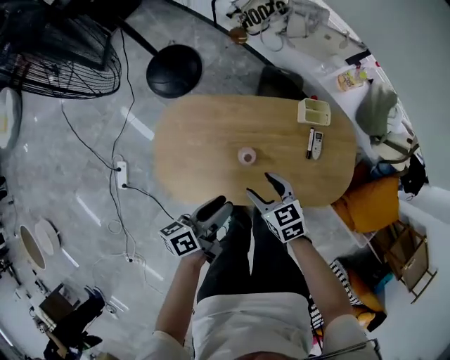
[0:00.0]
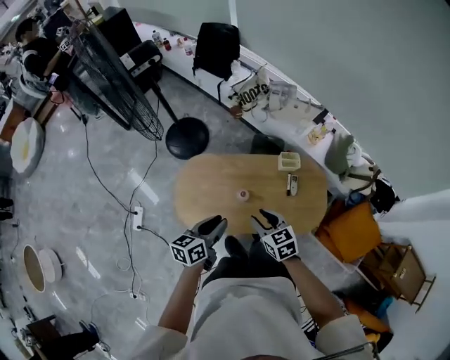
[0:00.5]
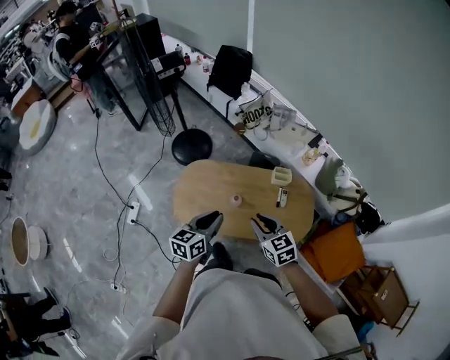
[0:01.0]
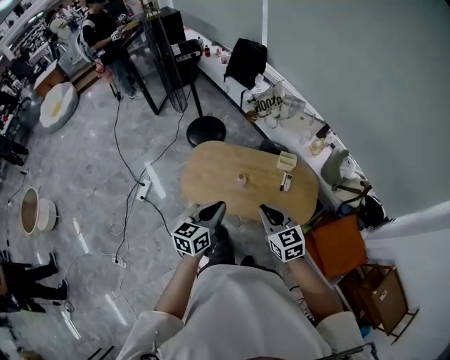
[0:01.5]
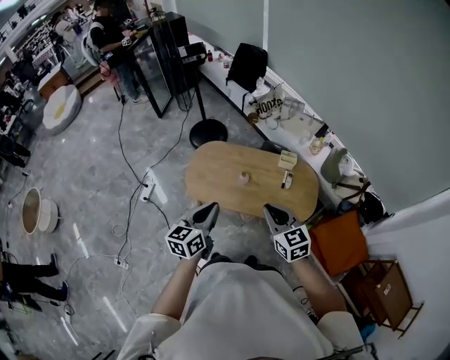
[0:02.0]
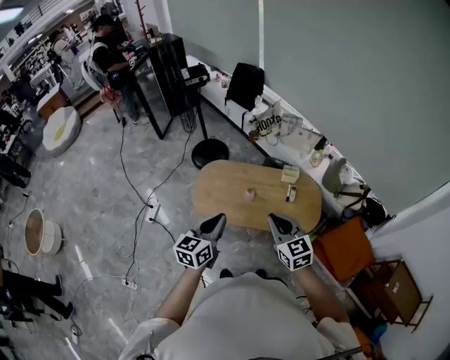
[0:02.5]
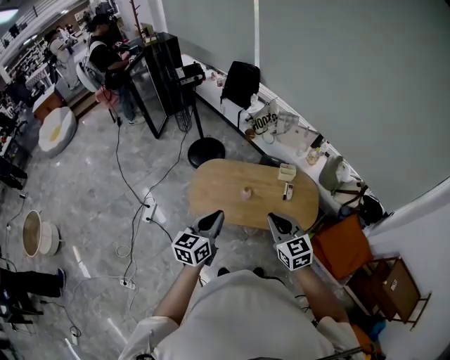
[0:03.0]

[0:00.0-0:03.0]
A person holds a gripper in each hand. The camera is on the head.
0:00.0 to 0:01.5: The right gripper moves upward, approximately 40 cm, swivels some 30 degrees, and closes.
0:01.5 to 0:03.0: The right gripper moves about 10 cm.

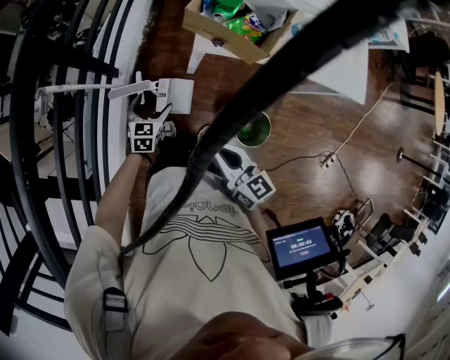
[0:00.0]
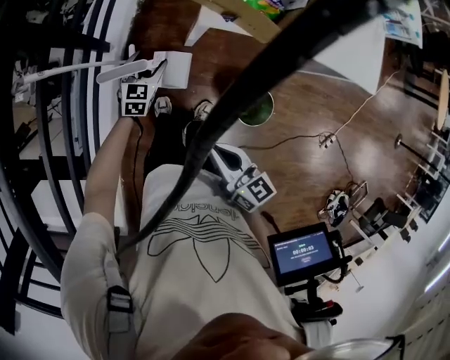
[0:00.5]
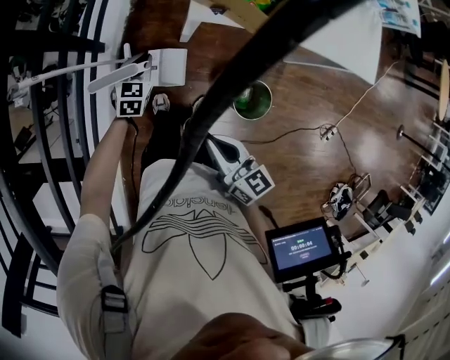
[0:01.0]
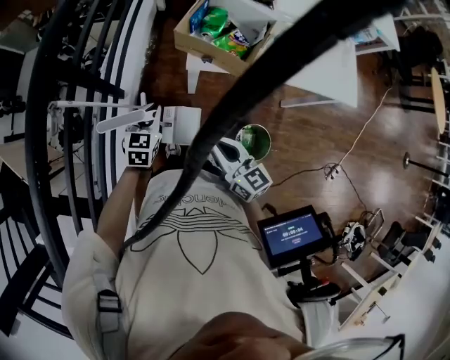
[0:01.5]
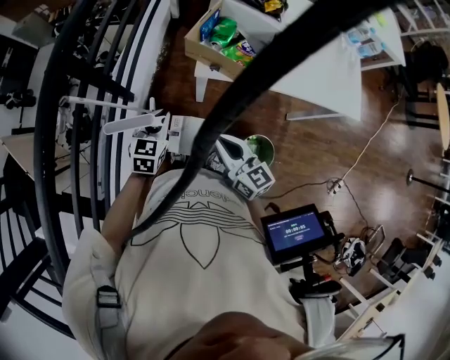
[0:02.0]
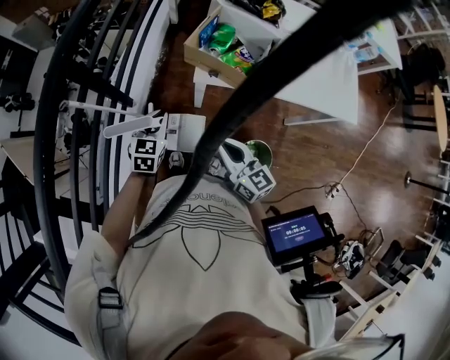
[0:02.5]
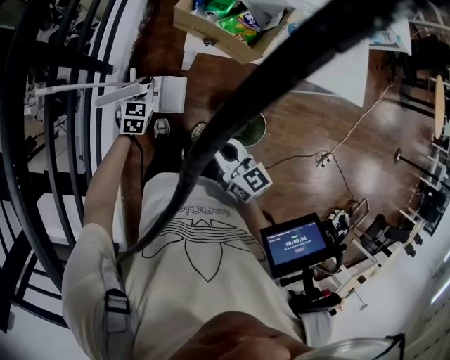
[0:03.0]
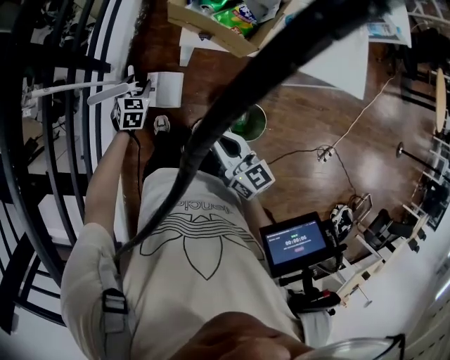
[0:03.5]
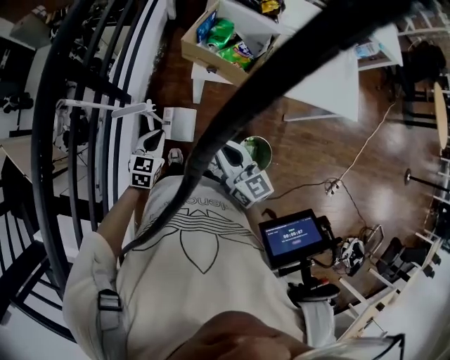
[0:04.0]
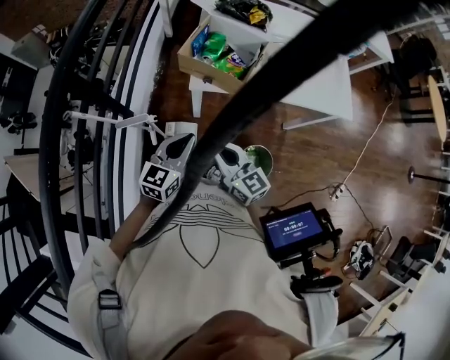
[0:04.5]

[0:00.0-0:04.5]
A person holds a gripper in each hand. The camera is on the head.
0:00.0 to 0:02.0: The right gripper heads forward, covering approximately 5 cm. The left gripper travels upward by roughly 15 cm, and closes up.
0:02.0 to 0:04.5: The left gripper goes some 10 cm to the right and backward, travels downward and back again, roughly 15 cm each way, rotates roughly 20 degrees, and opens, then closes again.

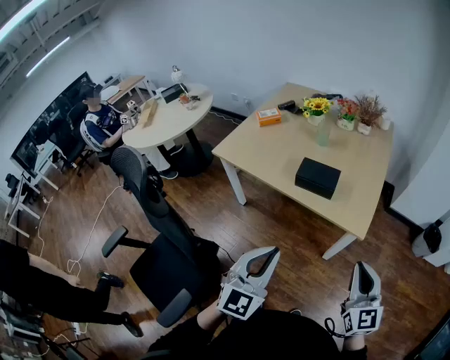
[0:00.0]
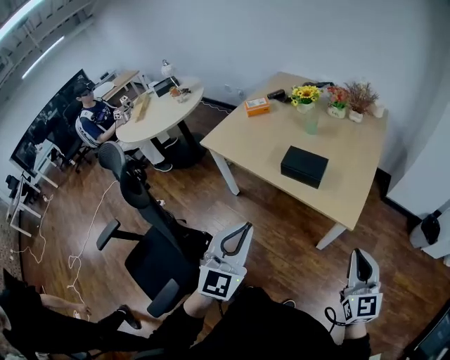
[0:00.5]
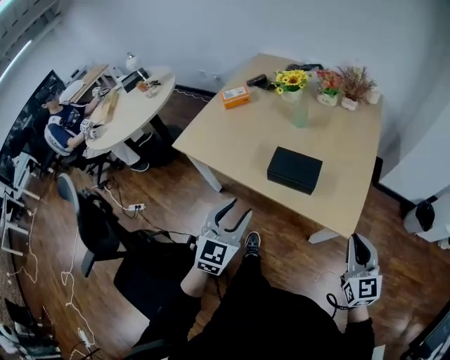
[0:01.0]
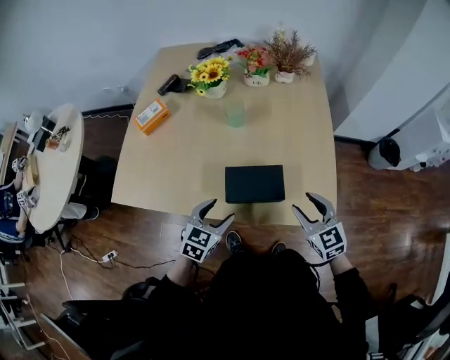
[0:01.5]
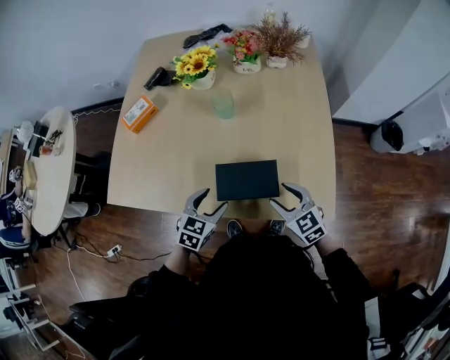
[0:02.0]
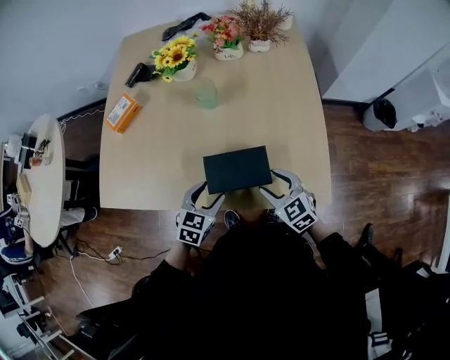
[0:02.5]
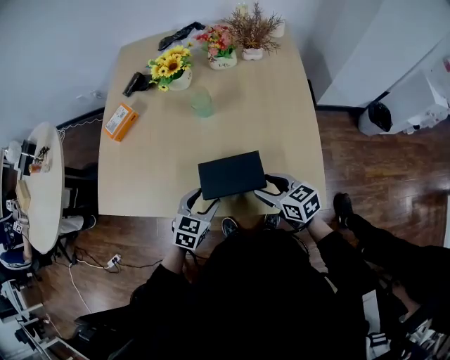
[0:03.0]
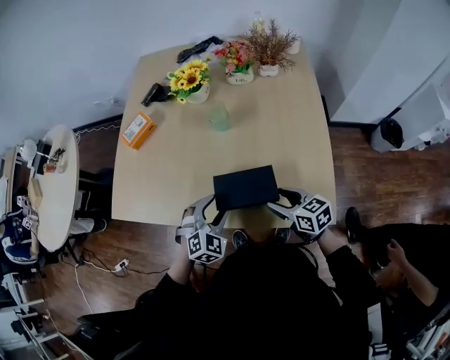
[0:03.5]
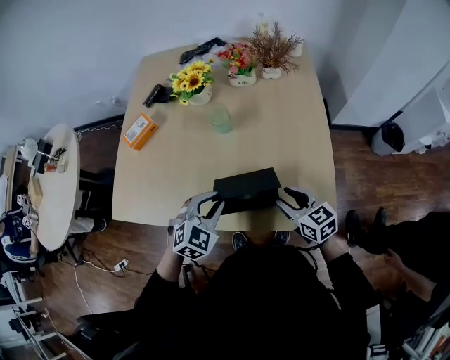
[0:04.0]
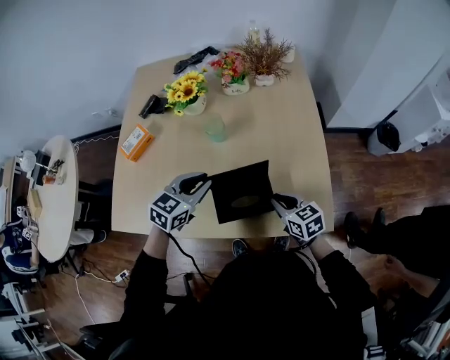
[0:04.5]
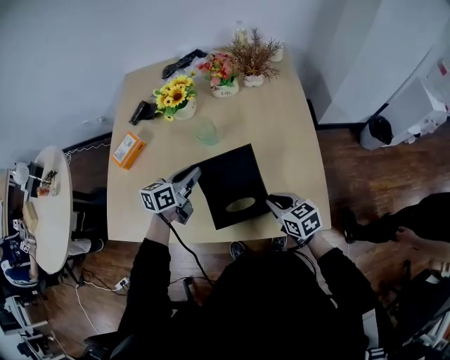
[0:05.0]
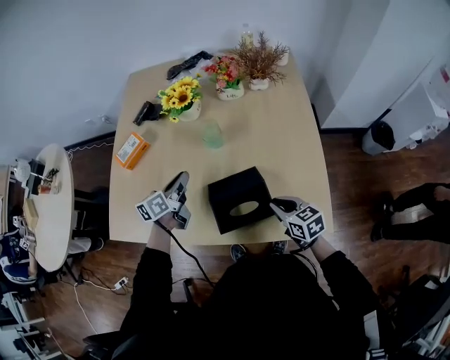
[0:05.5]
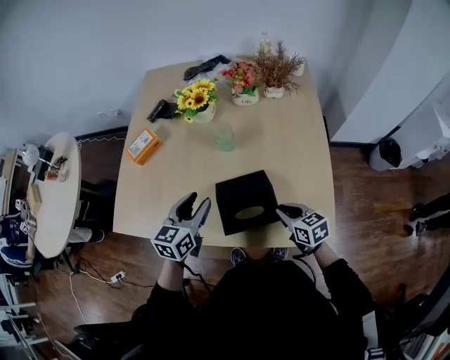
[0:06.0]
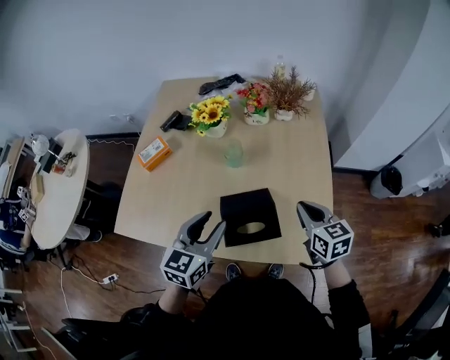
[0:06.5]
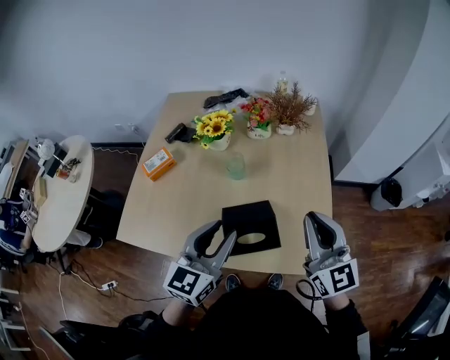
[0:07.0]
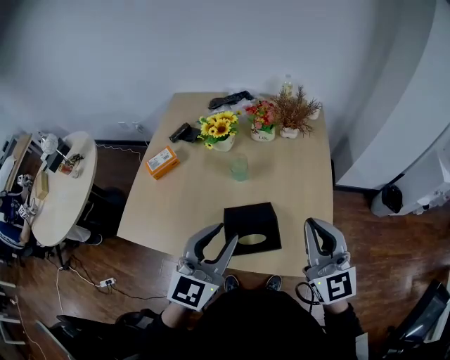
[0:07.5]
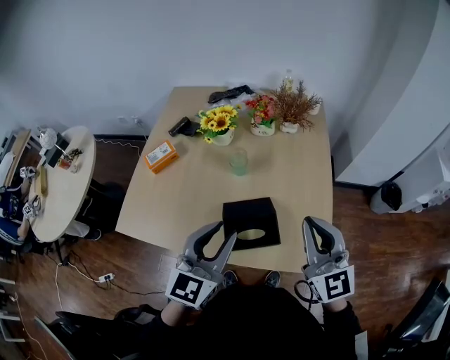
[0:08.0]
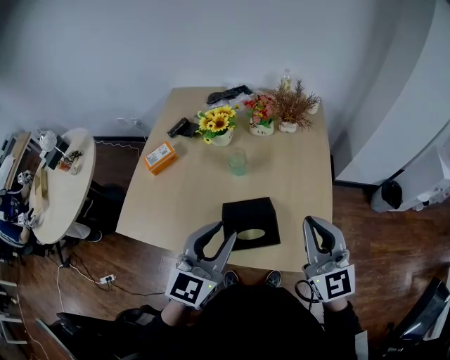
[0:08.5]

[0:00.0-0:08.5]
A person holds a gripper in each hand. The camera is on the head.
0:00.0 to 0:02.0: Both grippers travel together forward and downward, about 50 cm. The left gripper tips its fingers downward by approximately 40 degrees, and opens up. Meanwhile the right gripper swivels roughly 30 degrees, and opens its fingers.
0:02.0 to 0:04.0: The right gripper swivels some 20 degrees. The left gripper heads upward, covering approximately 10 cm, turns by roughly 30 degrees, and closes.
0:04.0 to 0:06.5: The right gripper travels upward and forward by about 10 cm, and closes. Meanwhile the left gripper travels upward by roughly 10 cm, travels forward and back again, approximately 15 cm each way, swivels roughly 40 degrees, and opens up.
0:06.5 to 0:08.5: The left gripper heads upward, covering some 10 cm; the right gripper is displaced upward by some 15 cm, and changes its angle by some 40 degrees.

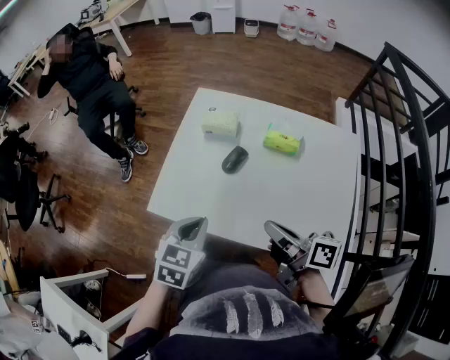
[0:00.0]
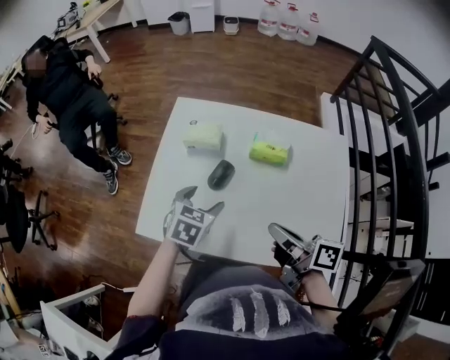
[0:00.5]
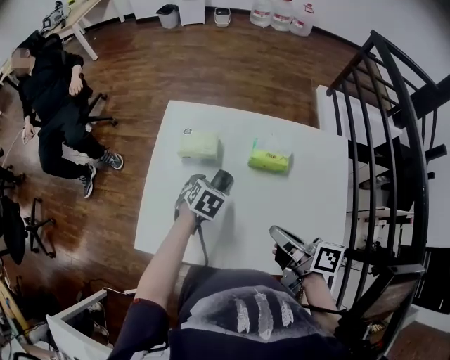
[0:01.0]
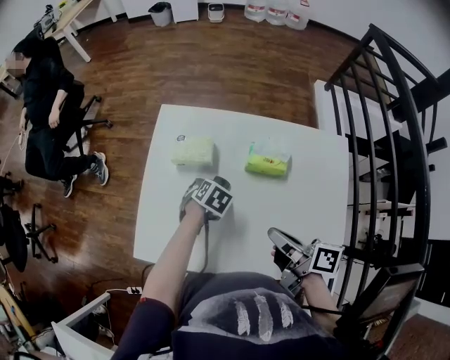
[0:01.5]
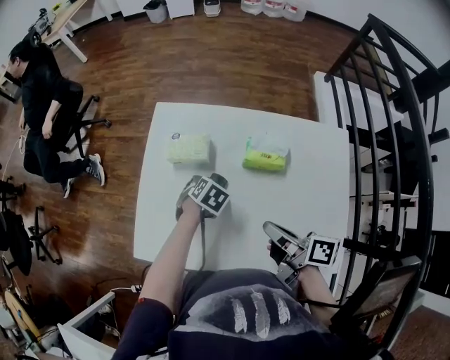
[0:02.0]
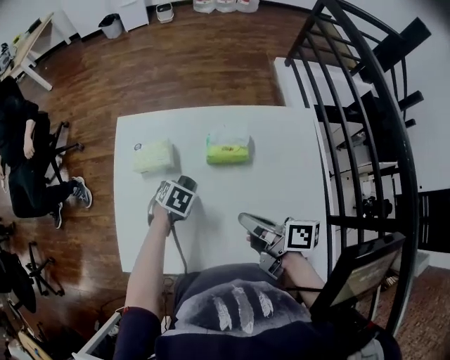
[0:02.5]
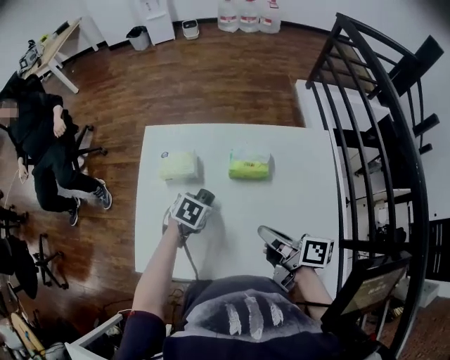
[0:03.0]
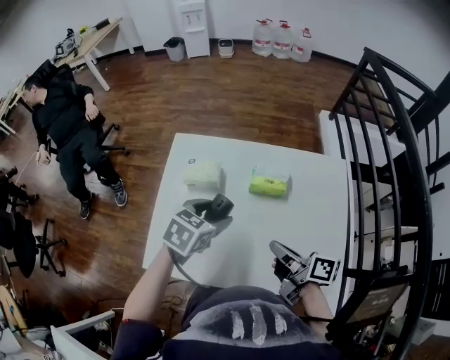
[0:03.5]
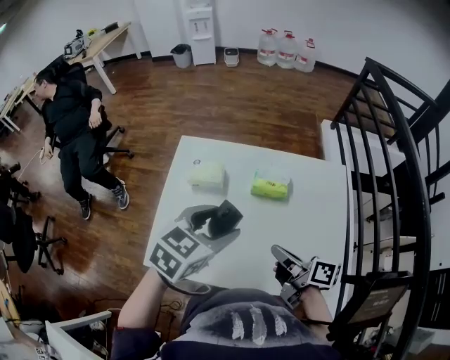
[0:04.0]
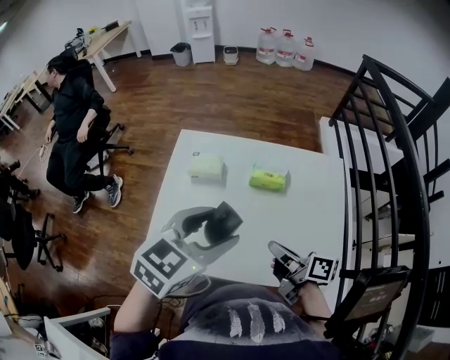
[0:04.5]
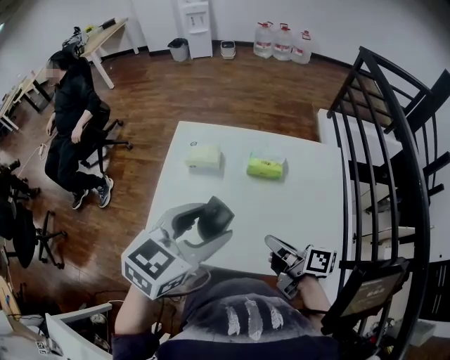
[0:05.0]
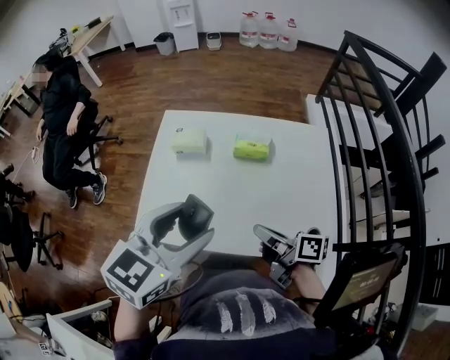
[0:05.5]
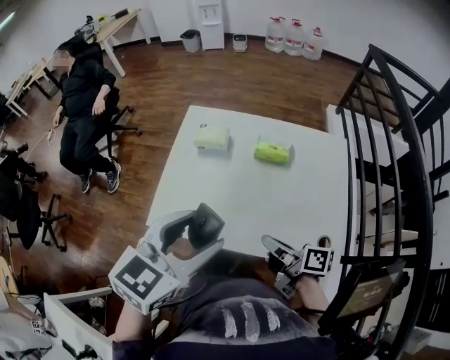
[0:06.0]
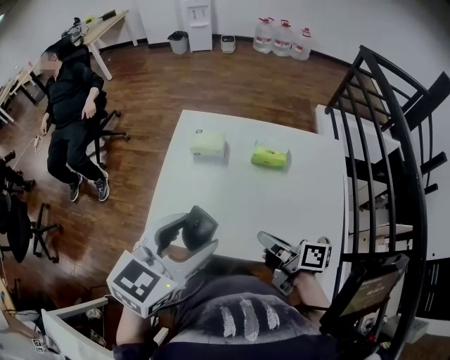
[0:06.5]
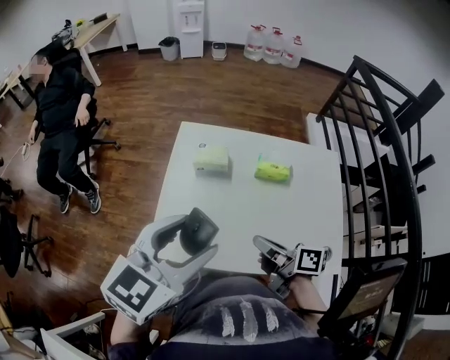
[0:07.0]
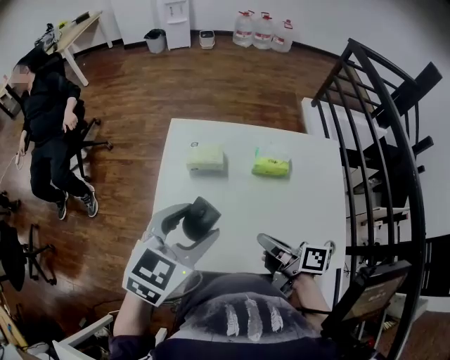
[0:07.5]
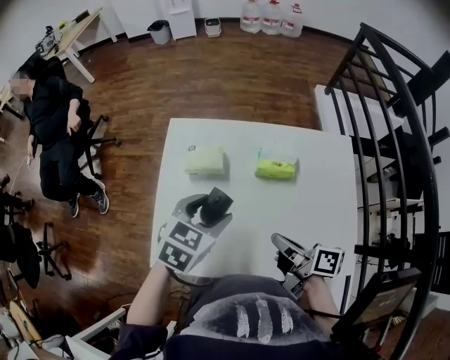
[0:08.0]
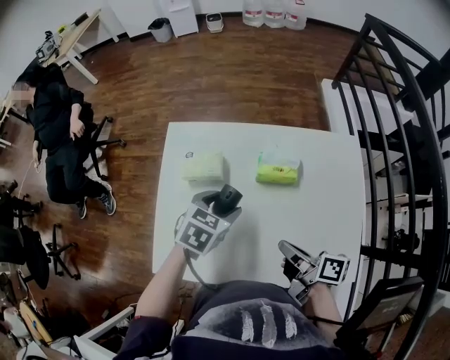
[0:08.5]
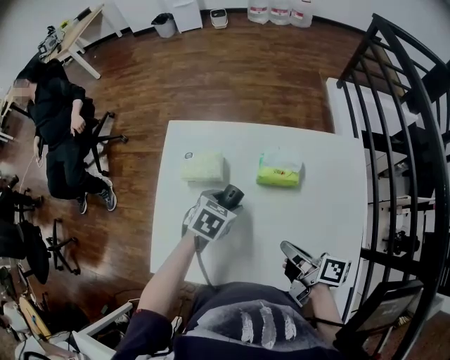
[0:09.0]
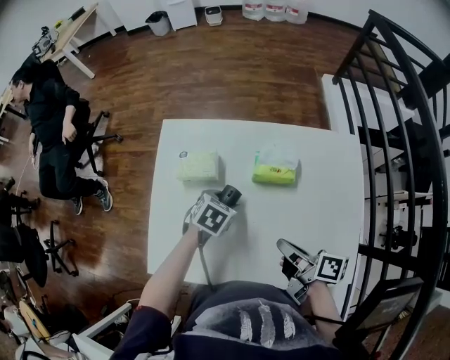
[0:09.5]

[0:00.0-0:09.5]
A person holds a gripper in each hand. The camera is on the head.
0:00.0 to 0:02.0: The left gripper changes place by some 35 cm, tilts its fingers roughly 30 degrees downward, and opens up.
0:02.0 to 0:04.0: The left gripper heads upward, covering roughly 30 cm, and angles its fingers upward, by approximately 40 degrees.
0:04.0 to 0:05.5: The left gripper moves approximately 15 cm.
0:05.5 to 0:07.5: The left gripper shifts by about 15 cm.
0:07.5 to 0:09.5: The left gripper shifts roughly 30 cm downward, and tips its fingers downward by roughly 30 degrees.
